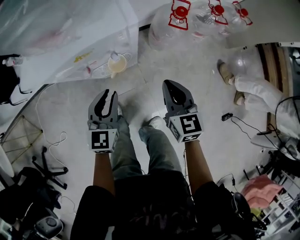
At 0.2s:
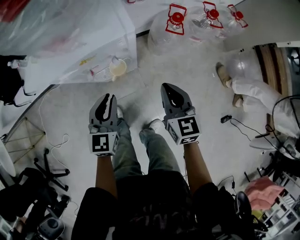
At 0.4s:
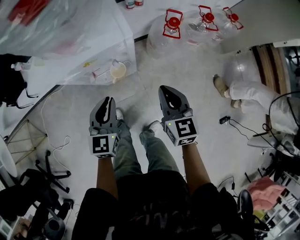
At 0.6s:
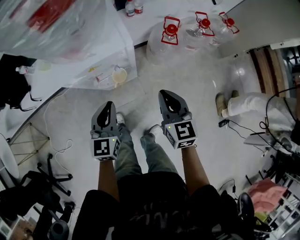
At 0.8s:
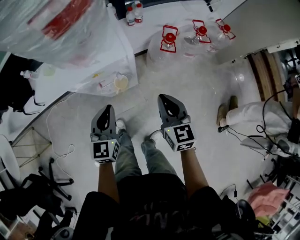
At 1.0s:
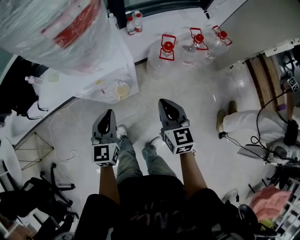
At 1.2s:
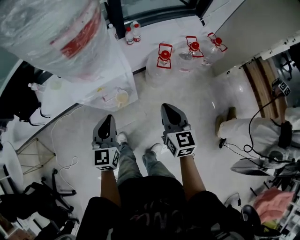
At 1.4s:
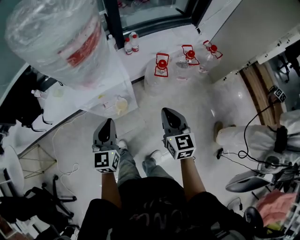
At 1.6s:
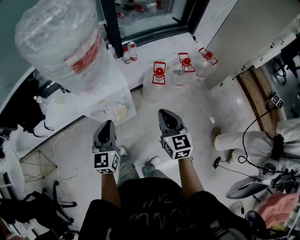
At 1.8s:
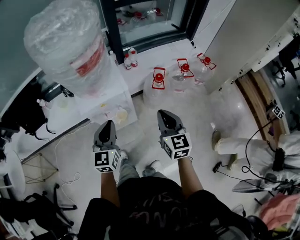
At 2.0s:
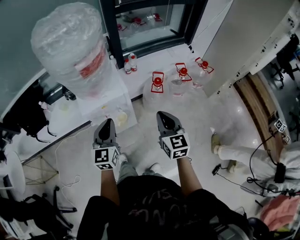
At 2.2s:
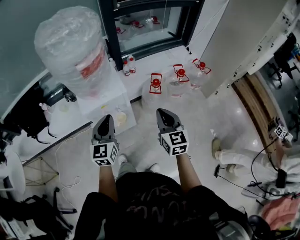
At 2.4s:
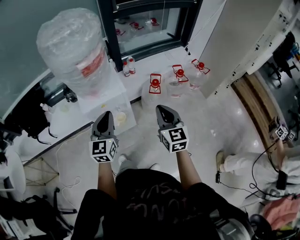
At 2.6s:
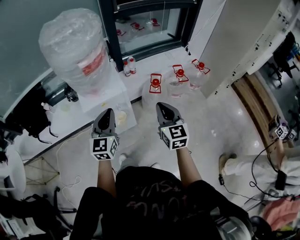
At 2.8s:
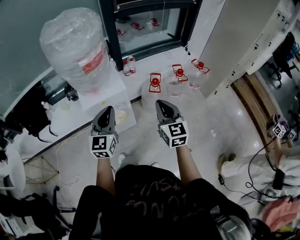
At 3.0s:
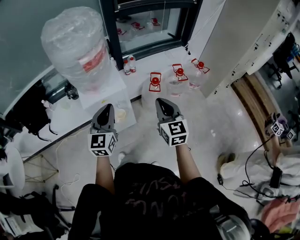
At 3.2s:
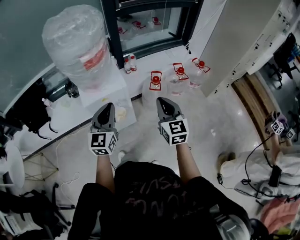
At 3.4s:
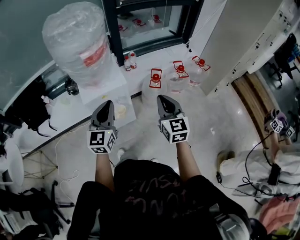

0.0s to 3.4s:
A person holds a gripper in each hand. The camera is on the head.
0.0s to 1.6s: The grippers both shift upward by about 25 cm.
1.6s to 3.4s: The grippers both shift upward by about 10 cm.

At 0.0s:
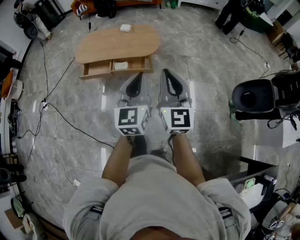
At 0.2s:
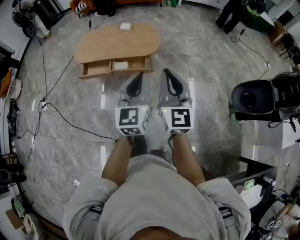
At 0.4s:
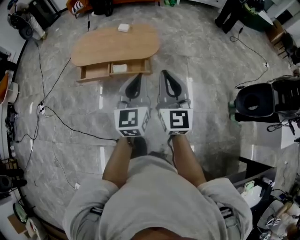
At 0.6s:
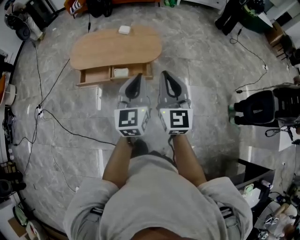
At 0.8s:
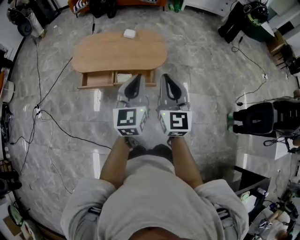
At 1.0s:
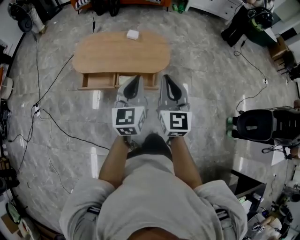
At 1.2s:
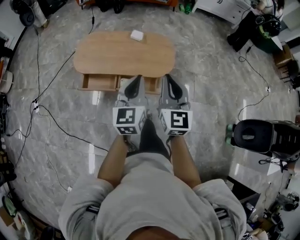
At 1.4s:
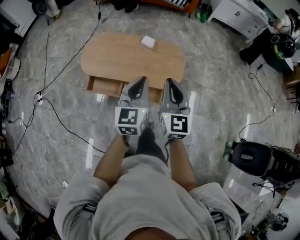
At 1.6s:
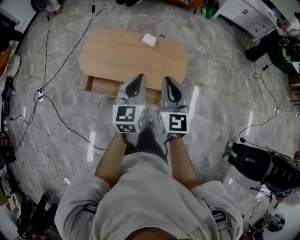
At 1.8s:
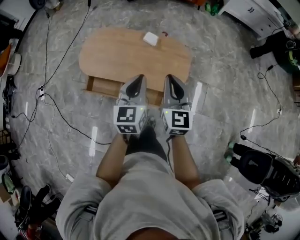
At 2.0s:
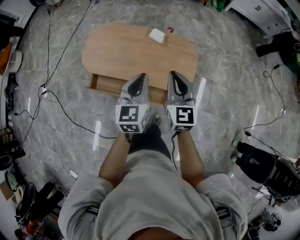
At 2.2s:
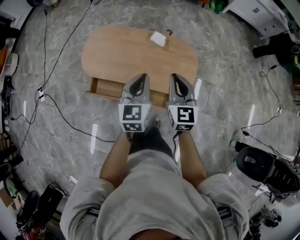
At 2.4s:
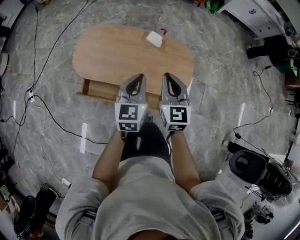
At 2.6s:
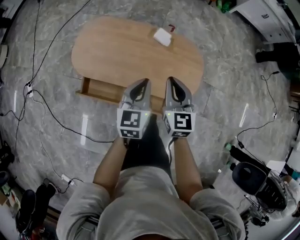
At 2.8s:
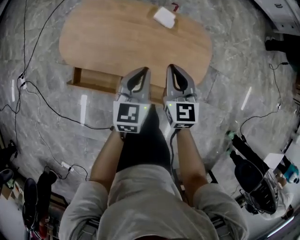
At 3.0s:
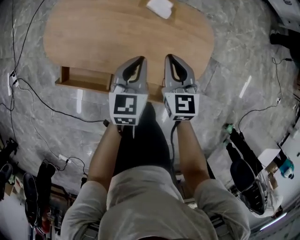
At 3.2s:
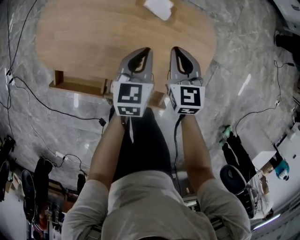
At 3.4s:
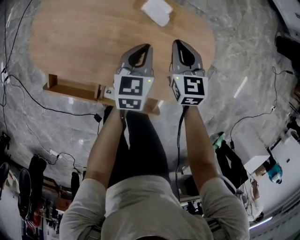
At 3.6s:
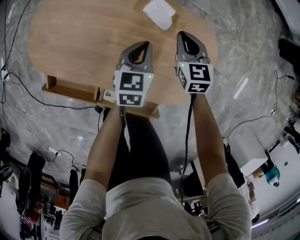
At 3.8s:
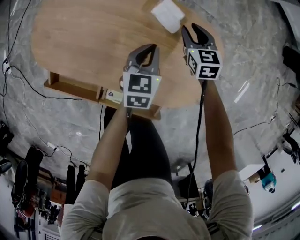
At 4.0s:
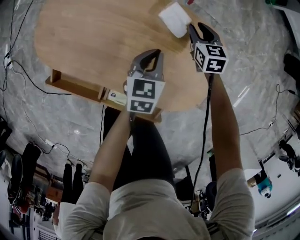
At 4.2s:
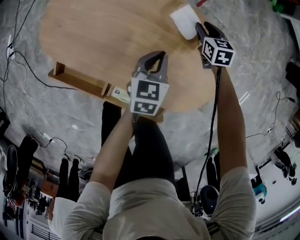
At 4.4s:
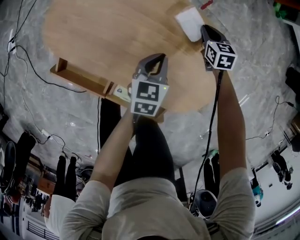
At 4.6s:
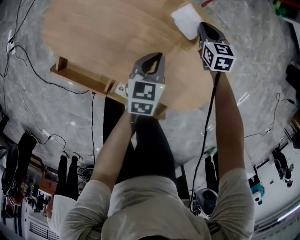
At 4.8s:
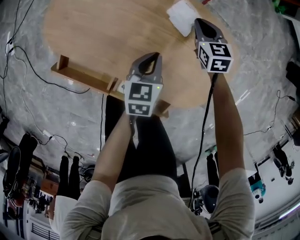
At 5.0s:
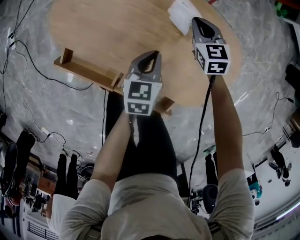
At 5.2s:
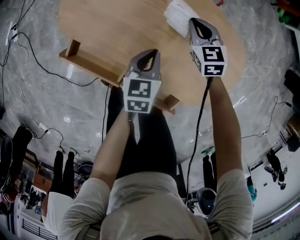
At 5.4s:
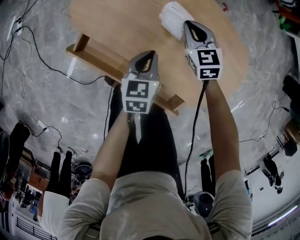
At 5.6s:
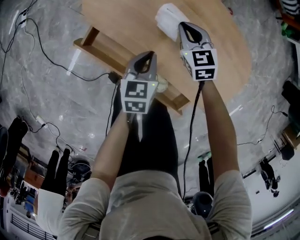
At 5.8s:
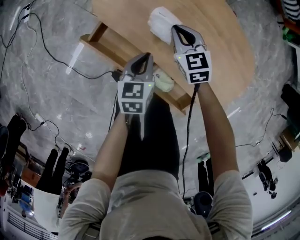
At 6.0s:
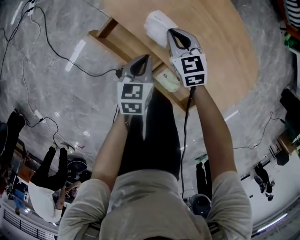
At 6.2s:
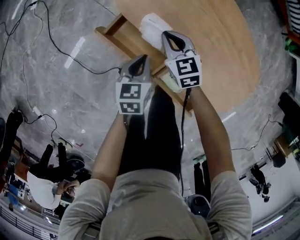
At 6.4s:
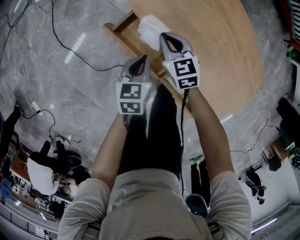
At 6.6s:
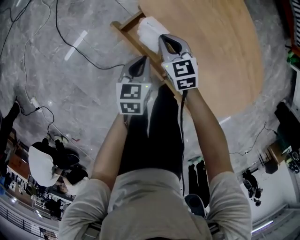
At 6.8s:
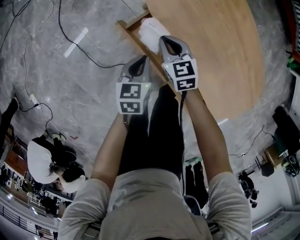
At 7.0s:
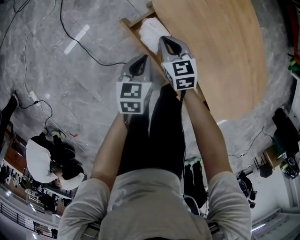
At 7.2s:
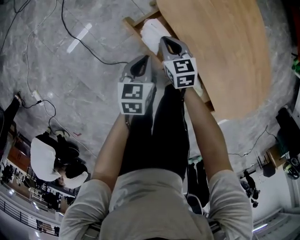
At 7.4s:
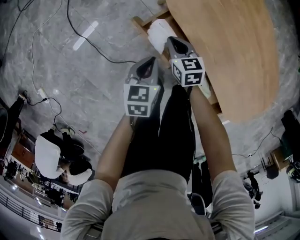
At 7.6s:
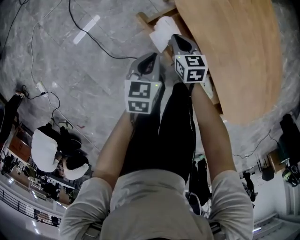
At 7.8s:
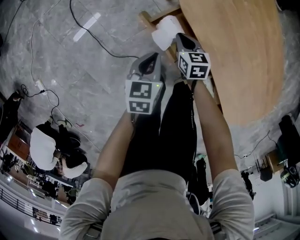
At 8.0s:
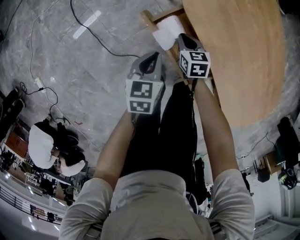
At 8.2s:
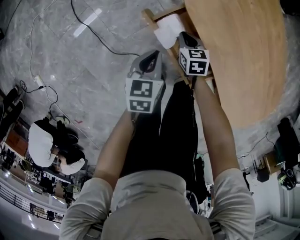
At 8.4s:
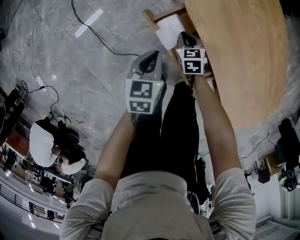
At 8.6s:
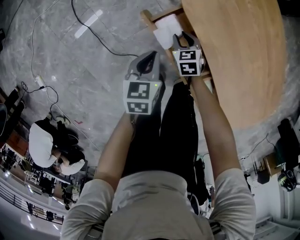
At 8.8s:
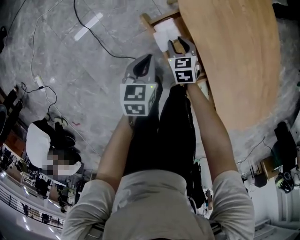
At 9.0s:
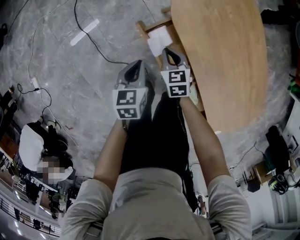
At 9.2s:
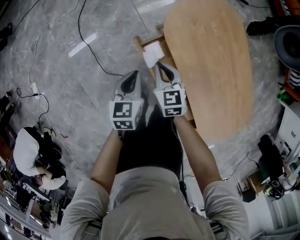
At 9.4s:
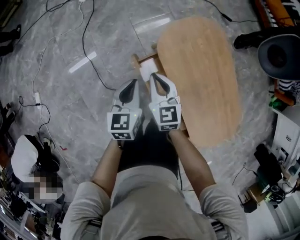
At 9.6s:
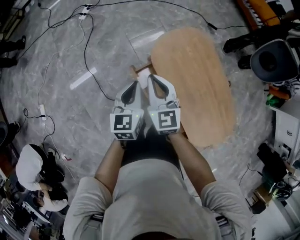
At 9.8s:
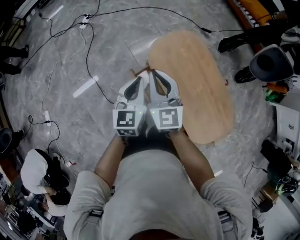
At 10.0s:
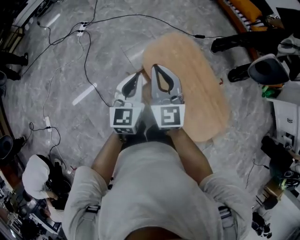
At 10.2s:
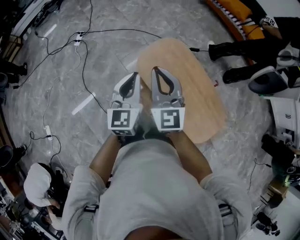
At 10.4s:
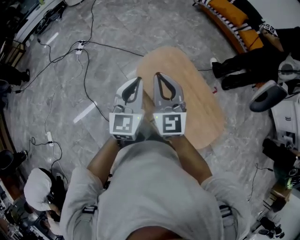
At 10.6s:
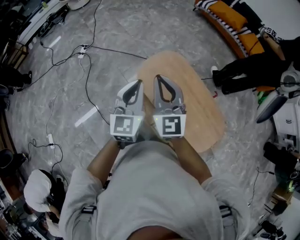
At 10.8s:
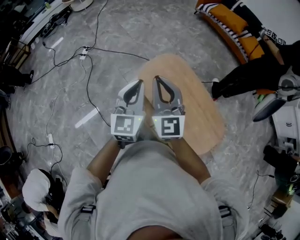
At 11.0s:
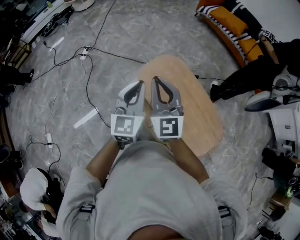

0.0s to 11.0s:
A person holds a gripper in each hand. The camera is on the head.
0.0s to 1.6s: The pair of grippers is taken forward, some 50 cm.
1.6s to 3.2s: Both grippers travel together downward and forward, roughly 50 cm. The right gripper turns by some 30 degrees. Meanwhile the left gripper rotates some 20 degrees.
3.2s to 4.8s: The left gripper travels downward and to the left by about 10 cm. The right gripper is displaced forward and downward by some 20 cm, rotates approximately 20 degrees, and opens, then closes again.
4.8s to 6.2s: Both grippers move to the left, about 35 cm. The right gripper changes its angle by about 30 degrees.
6.2s to 7.8s: The left gripper travels to the left and downward by some 15 cm. The right gripper moves downward and to the left, some 20 cm, and rotates roughly 20 degrees.
7.8s to 9.4s: The two grippers go approximately 30 cm upward. The left gripper swivels some 20 degrees, while the right gripper turns by some 30 degrees, and opens, then closes again.
9.4s to 11.0s: The left gripper travels upward and to the right by approximately 35 cm, and swivels approximately 30 degrees. Meanwhile the right gripper is displaced upward by approximately 35 cm, and rotates approximately 30 degrees.

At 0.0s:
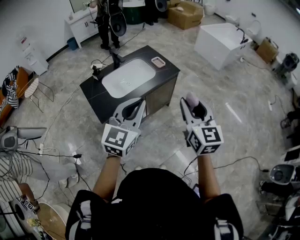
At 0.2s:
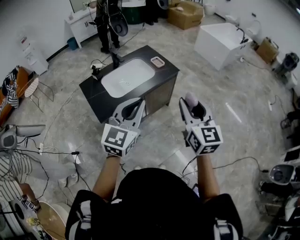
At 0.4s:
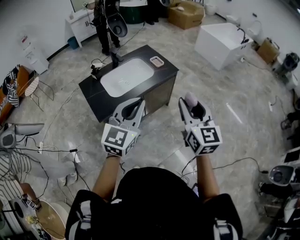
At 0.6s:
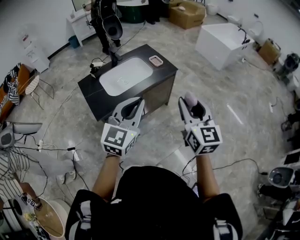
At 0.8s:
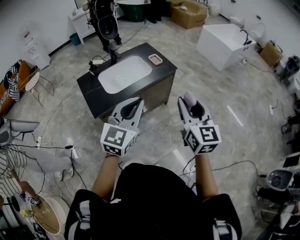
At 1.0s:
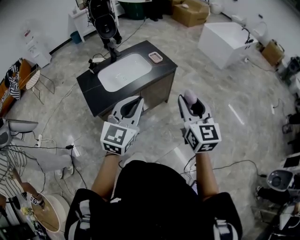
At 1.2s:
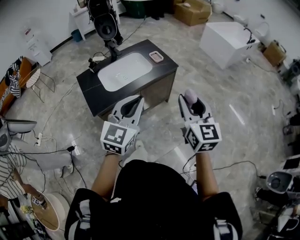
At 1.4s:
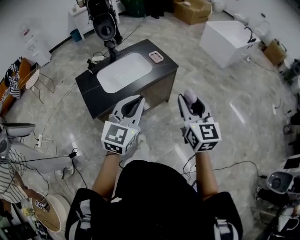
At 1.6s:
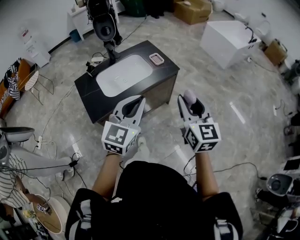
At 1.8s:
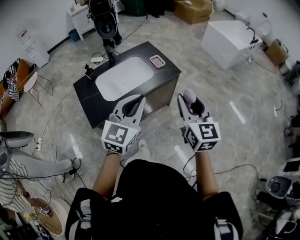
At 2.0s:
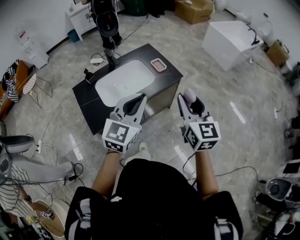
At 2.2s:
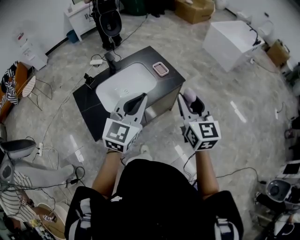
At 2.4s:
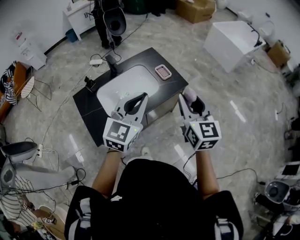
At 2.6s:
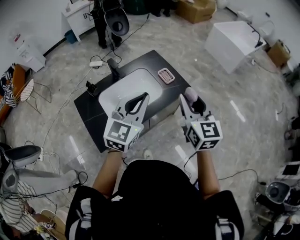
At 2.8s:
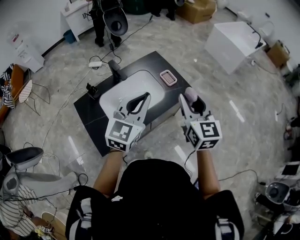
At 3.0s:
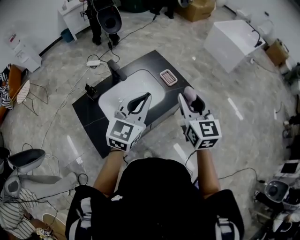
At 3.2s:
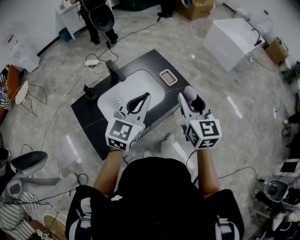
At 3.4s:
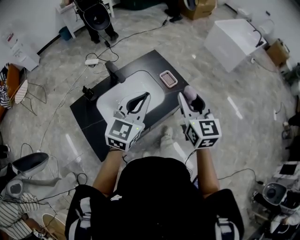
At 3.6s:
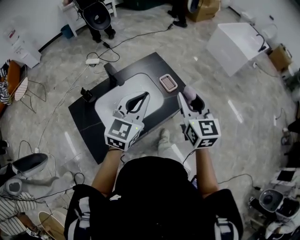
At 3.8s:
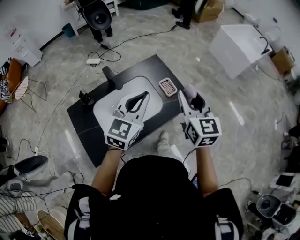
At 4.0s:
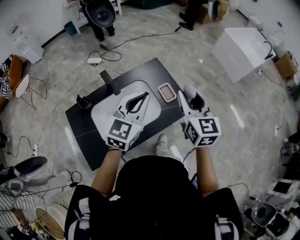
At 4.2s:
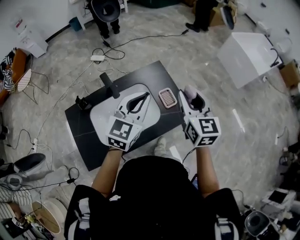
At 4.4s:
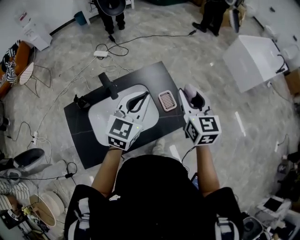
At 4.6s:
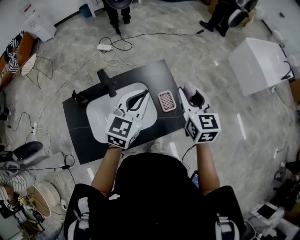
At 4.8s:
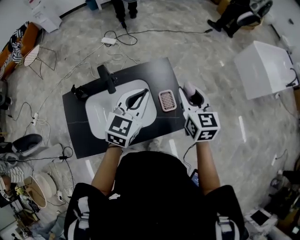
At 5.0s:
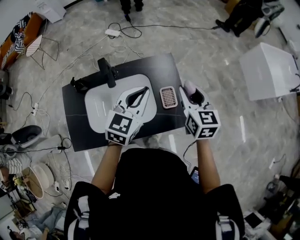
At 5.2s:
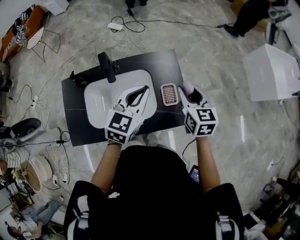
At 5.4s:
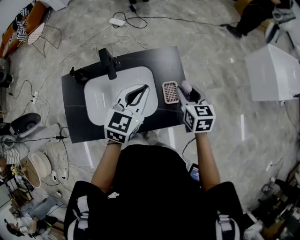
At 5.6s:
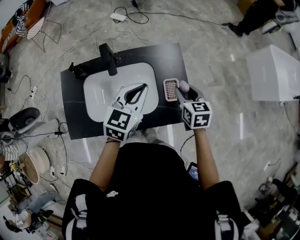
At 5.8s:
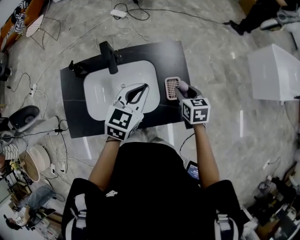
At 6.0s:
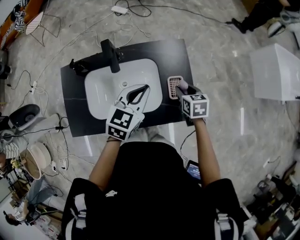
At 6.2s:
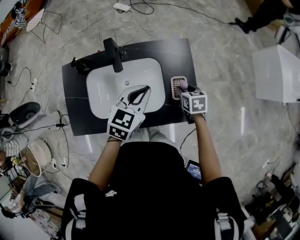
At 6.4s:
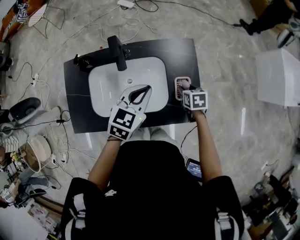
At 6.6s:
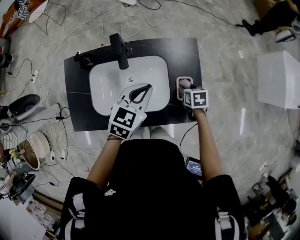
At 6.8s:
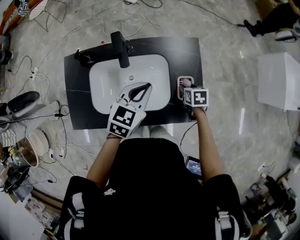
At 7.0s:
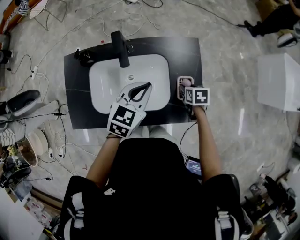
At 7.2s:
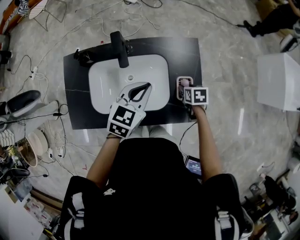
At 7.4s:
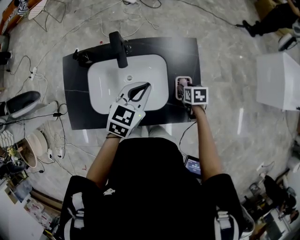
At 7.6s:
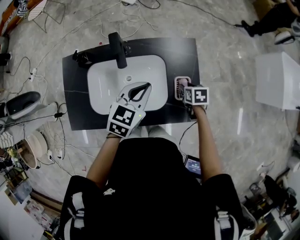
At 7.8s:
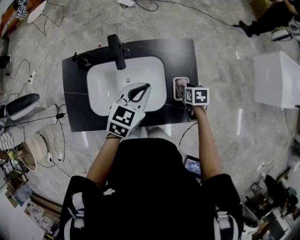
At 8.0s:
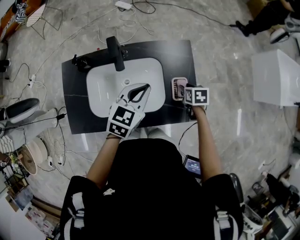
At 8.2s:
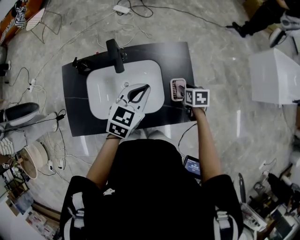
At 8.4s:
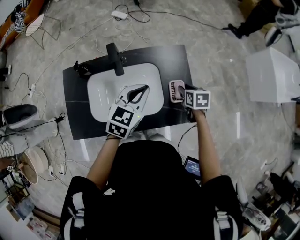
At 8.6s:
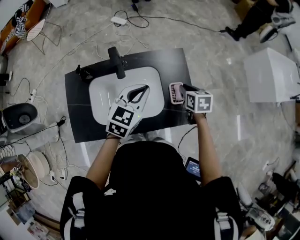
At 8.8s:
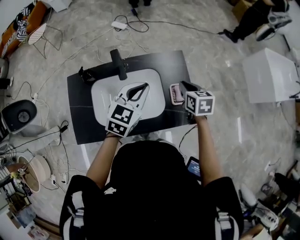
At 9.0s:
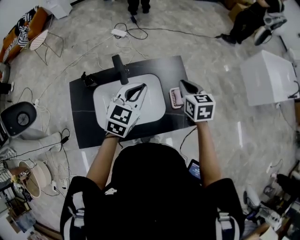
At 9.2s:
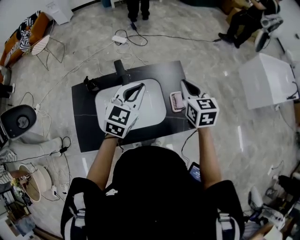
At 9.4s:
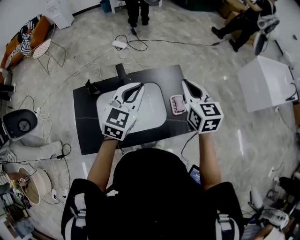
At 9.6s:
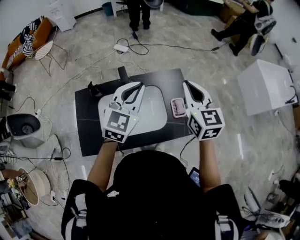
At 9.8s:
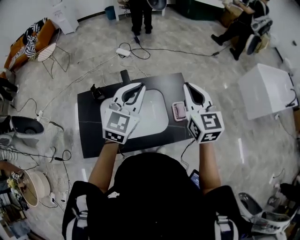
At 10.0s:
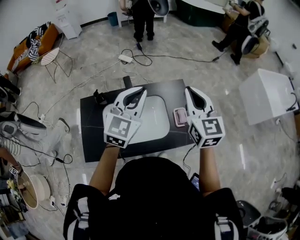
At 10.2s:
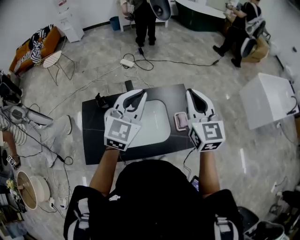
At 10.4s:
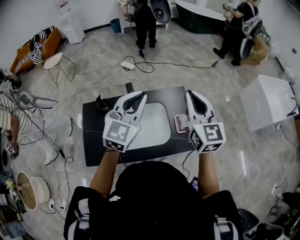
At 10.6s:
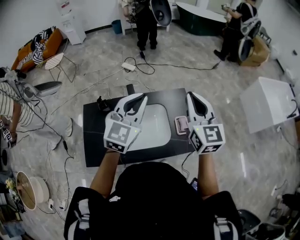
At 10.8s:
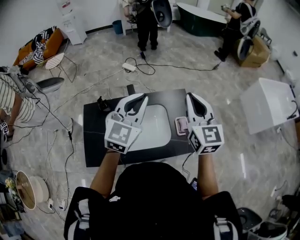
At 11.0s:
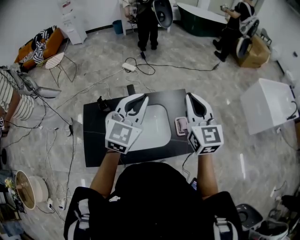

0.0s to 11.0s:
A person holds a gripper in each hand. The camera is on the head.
0.0s to 1.6s: The right gripper shifts approximately 10 cm forward. The left gripper goes some 10 cm forward and to the right.
1.6s to 3.2s: The two grippers go some 30 cm forward and to the left.
3.2s to 4.8s: Both grippers move forward, roughly 25 cm. The left gripper turns by some 20 degrees. Meanwhile the right gripper swivels roughly 20 degrees.
4.8s to 6.2s: The right gripper travels downward by about 25 cm, and tilts its fingers some 40 degrees downward. The left gripper shifts approximately 10 cm downward.
6.2s to 7.8s: There are only small adjustments of the grippers.
7.8s to 9.4s: The left gripper goes about 15 cm upward, and changes its angle by about 20 degrees. The right gripper goes approximately 35 cm upward, points its fingers about 50 degrees further upward, and closes its fingers.
9.4s to 11.0s: The two grippers go approximately 10 cm upward.
